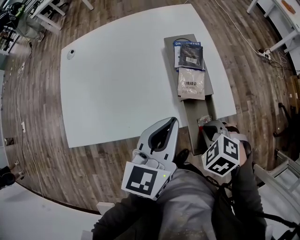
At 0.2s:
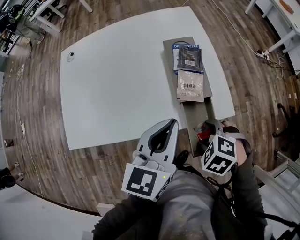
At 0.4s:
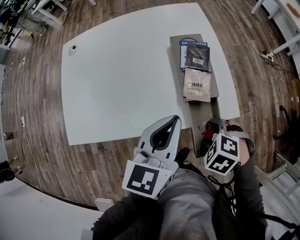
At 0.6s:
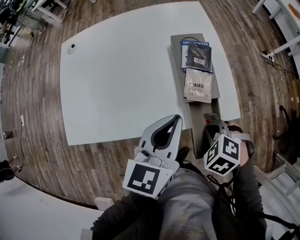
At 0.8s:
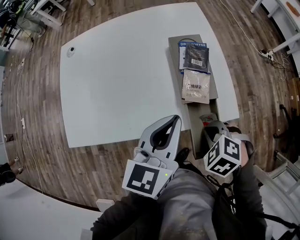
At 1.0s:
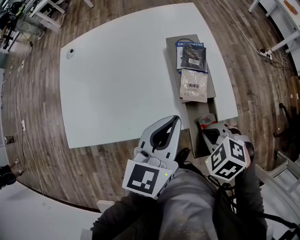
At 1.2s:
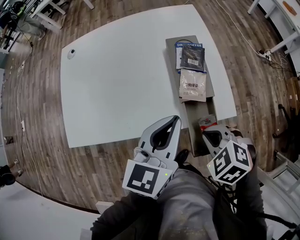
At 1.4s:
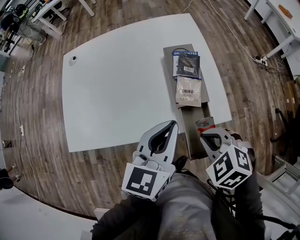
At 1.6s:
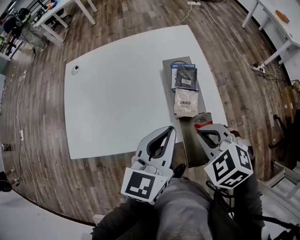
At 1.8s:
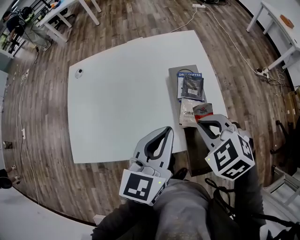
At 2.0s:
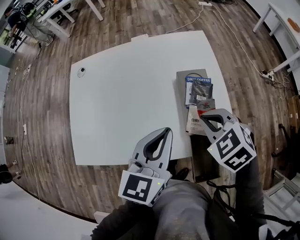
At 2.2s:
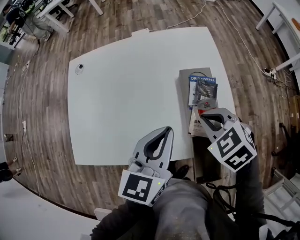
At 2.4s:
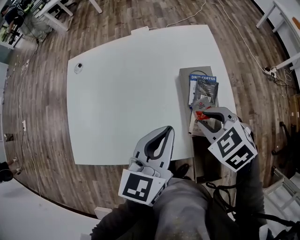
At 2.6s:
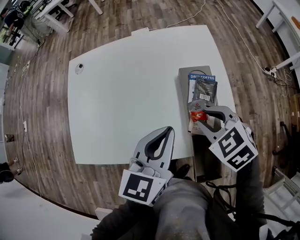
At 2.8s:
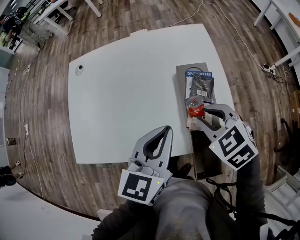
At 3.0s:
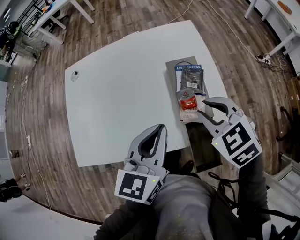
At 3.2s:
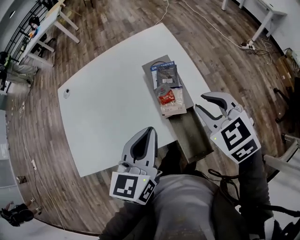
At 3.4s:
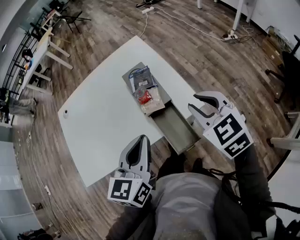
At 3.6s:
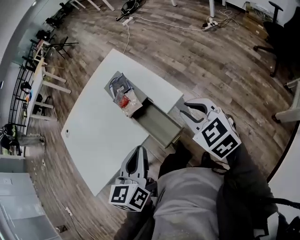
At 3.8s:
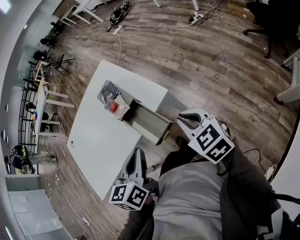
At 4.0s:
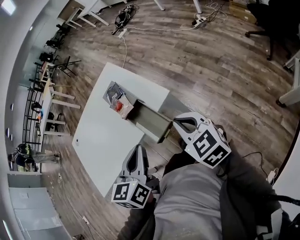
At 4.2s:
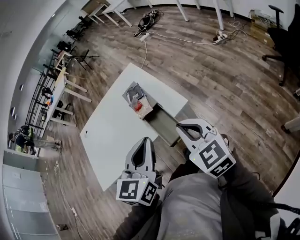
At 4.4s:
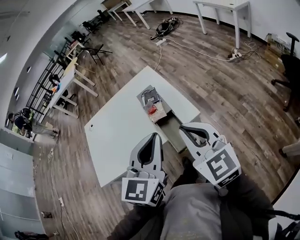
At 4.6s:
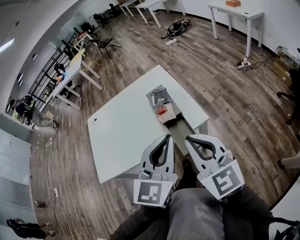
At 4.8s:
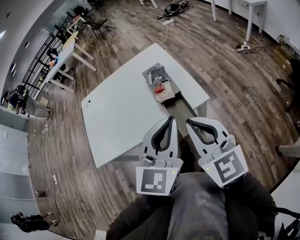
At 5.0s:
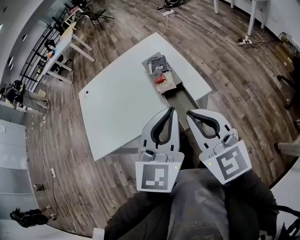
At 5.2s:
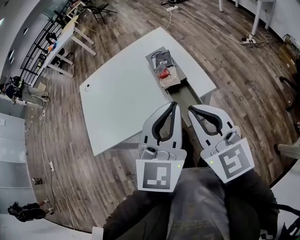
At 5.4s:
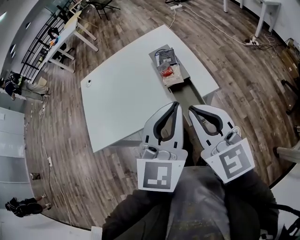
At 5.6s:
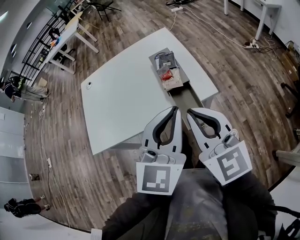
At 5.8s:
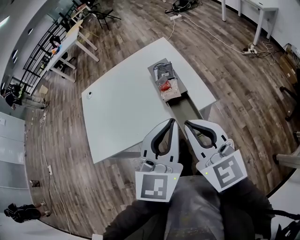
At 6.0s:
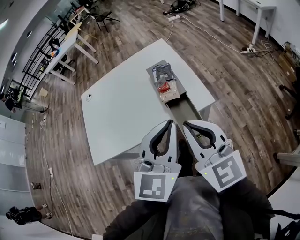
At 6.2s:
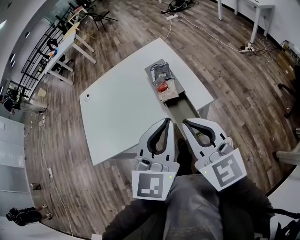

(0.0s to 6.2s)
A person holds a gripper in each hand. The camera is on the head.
0.0s - 1.6s: The right gripper goes some 10 cm upward, and opens and closes again.
1.6s - 3.2s: The right gripper goes about 10 cm to the right and forward, rotates about 30 degrees, and opens its fingers; the left gripper goes forward and returns, roughly 10 cm each way.
3.2s - 4.6s: The left gripper moves backward, to the right and upward, about 20 cm, and rotates approximately 30 degrees, while the right gripper travels backward and upward by approximately 25 cm, points its fingers about 40 degrees further upward, and closes its fingers.
4.6s - 6.2s: The grippers move only a little.

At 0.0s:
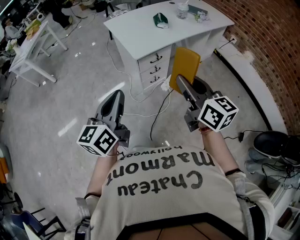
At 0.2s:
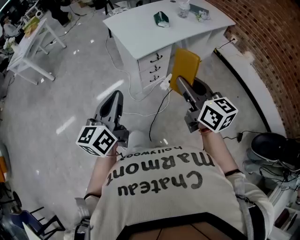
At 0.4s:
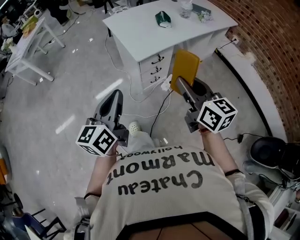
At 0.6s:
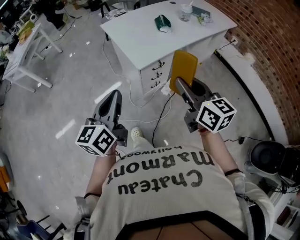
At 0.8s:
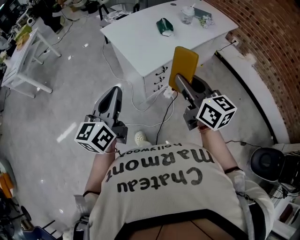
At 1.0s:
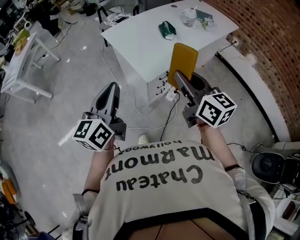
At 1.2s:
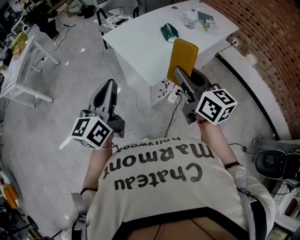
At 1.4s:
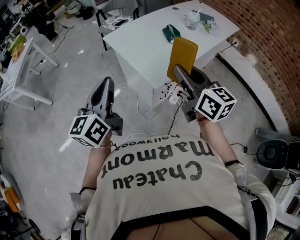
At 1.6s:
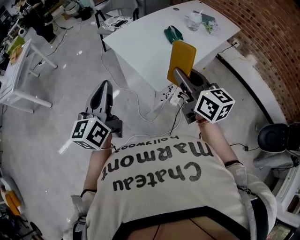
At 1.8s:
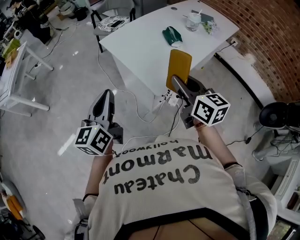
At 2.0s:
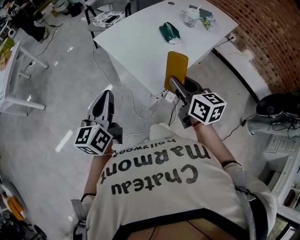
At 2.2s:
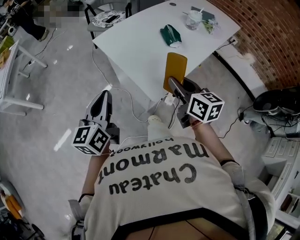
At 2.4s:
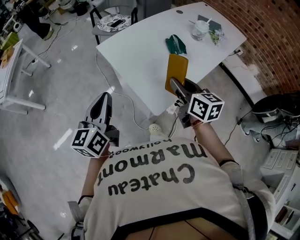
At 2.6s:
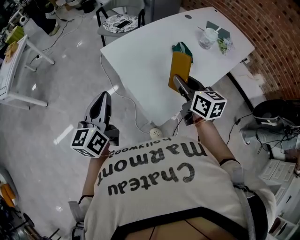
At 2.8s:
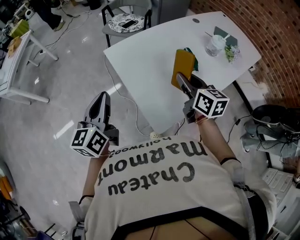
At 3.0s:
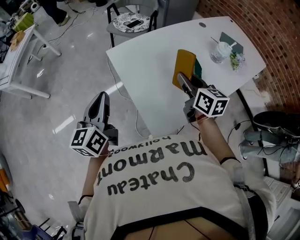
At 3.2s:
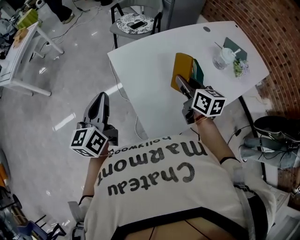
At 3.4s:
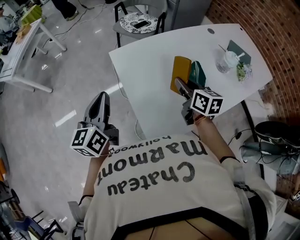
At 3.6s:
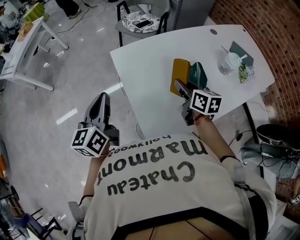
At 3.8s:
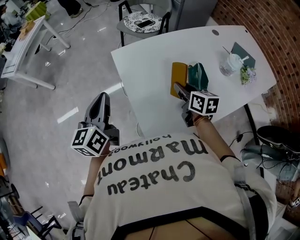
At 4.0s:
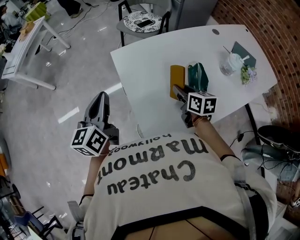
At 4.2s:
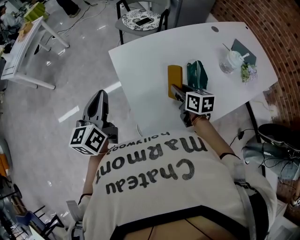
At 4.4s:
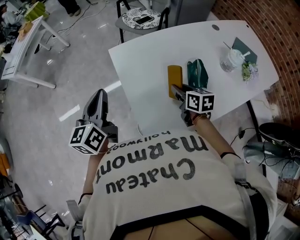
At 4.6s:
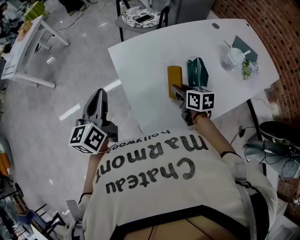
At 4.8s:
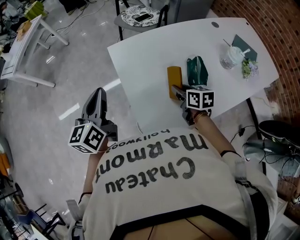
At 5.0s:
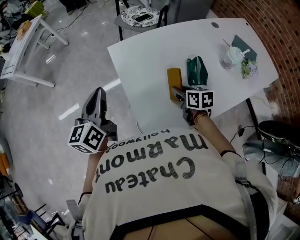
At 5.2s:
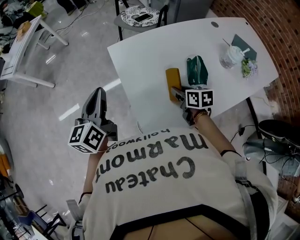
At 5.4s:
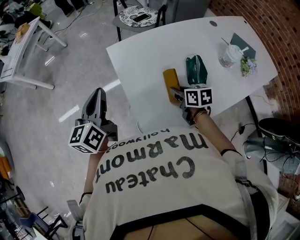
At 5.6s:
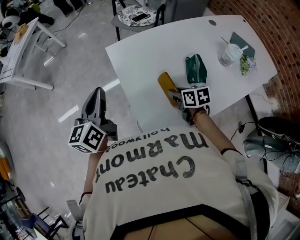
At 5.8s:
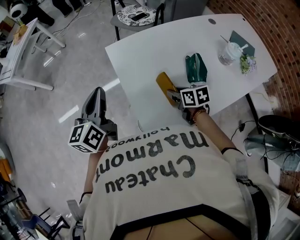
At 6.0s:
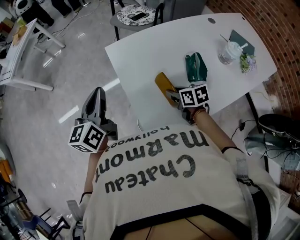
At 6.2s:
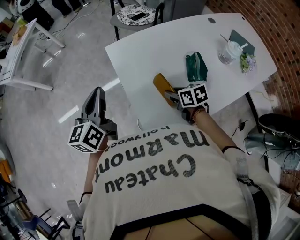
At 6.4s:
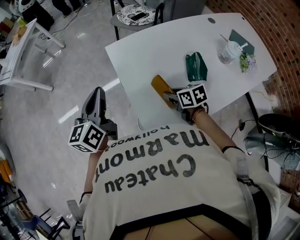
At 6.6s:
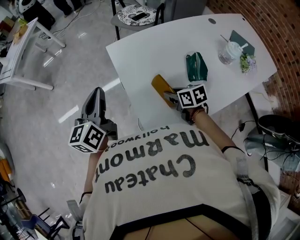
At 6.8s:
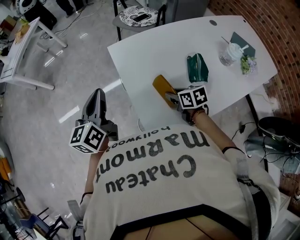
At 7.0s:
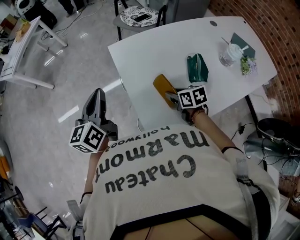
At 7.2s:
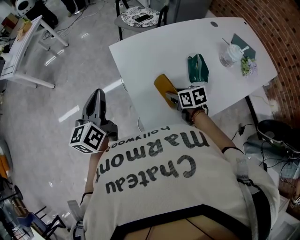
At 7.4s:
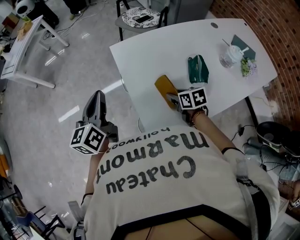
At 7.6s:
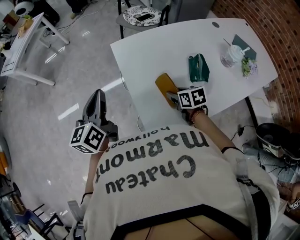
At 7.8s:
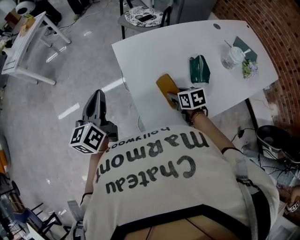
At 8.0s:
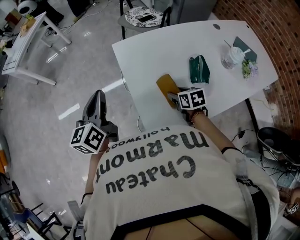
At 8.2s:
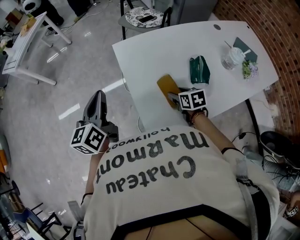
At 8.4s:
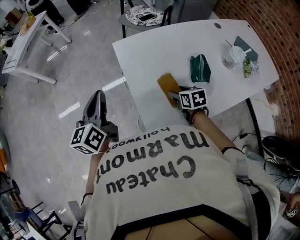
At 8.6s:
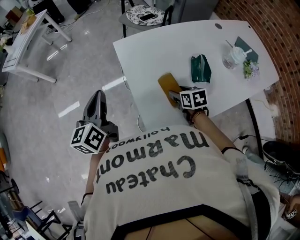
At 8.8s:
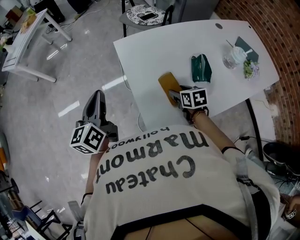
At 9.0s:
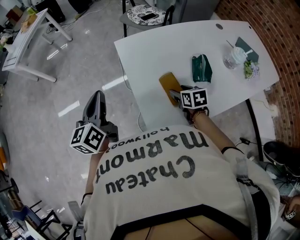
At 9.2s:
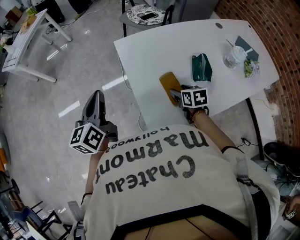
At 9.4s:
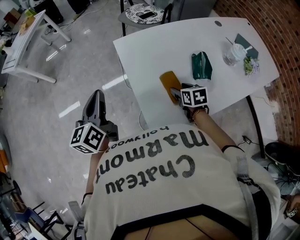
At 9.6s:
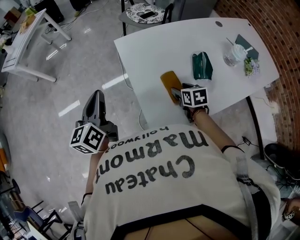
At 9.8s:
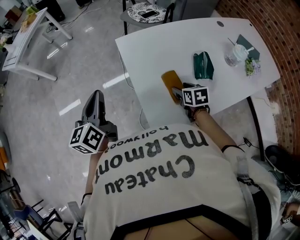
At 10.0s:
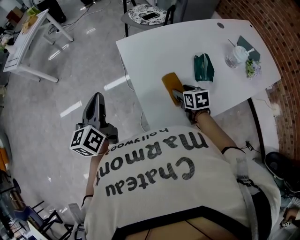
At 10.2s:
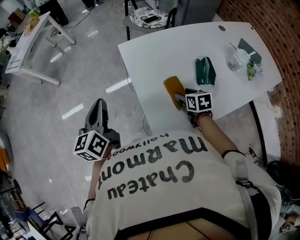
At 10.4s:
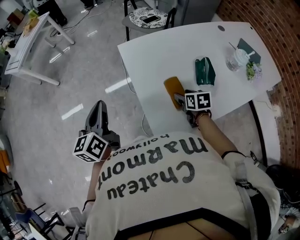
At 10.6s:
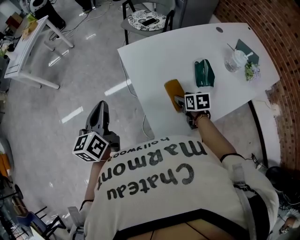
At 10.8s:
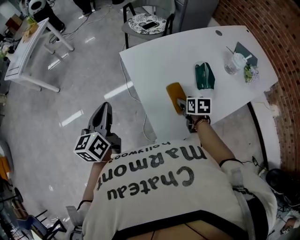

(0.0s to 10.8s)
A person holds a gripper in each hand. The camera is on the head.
0.0s - 1.6s: Both grippers travel together forward and to the left, some 35 cm.
1.6s - 3.0s: The grippers both shift forward by some 30 cm.
3.0s - 4.6s: The right gripper goes about 15 cm downward, and swivels about 20 degrees.
4.6s - 6.2s: The right gripper moves some 5 cm.
6.2s - 7.8s: The right gripper opens up.
7.8s - 10.8s: There are only small adjustments of the grippers.

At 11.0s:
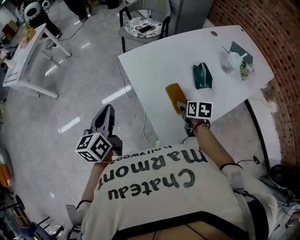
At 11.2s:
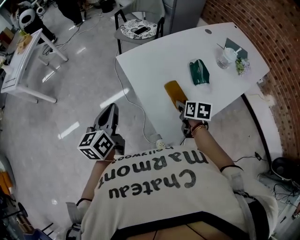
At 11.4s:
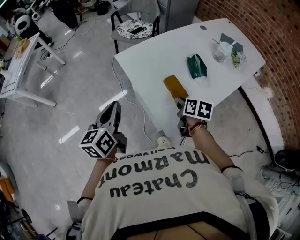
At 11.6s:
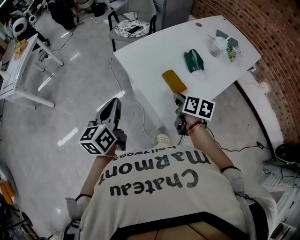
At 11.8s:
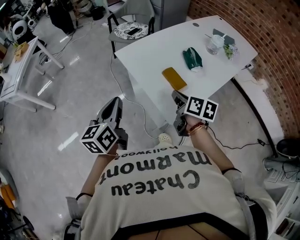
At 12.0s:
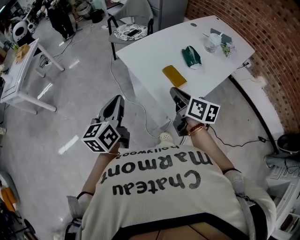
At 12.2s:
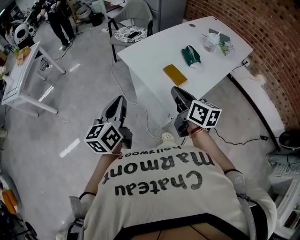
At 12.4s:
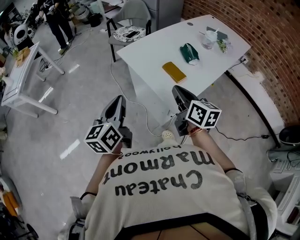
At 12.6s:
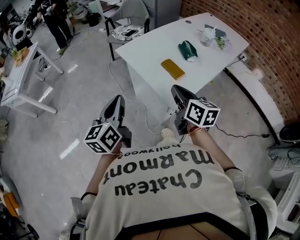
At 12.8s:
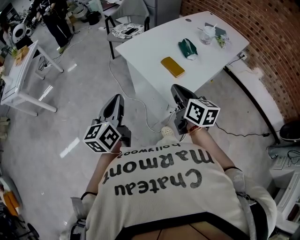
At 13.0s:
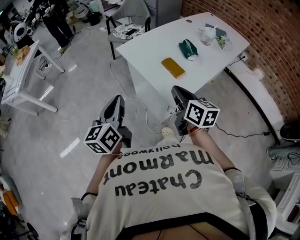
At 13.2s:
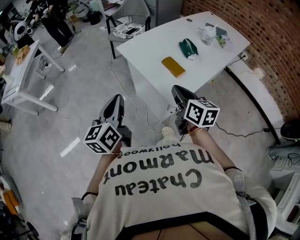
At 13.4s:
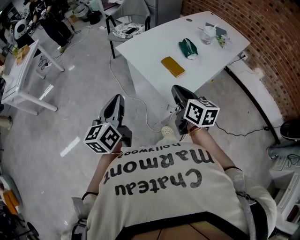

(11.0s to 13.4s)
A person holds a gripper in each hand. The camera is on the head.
11.0s - 12.2s: The right gripper heads upward, backward and to the left, covering approximately 30 cm, points its fingers roughly 40 degrees further upward, and closes up, while the left gripper goes about 10 cm backward.
12.2s - 13.4s: The grippers move only a little.

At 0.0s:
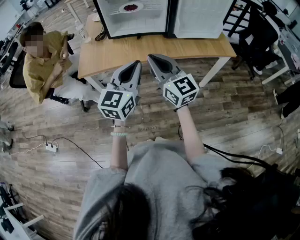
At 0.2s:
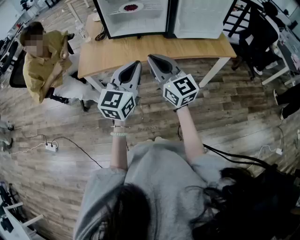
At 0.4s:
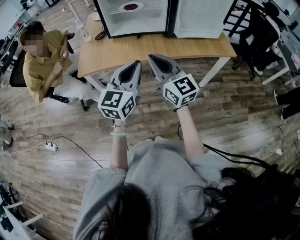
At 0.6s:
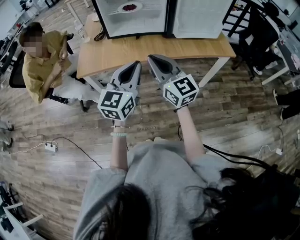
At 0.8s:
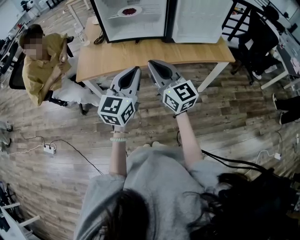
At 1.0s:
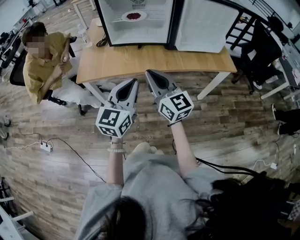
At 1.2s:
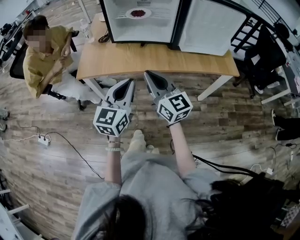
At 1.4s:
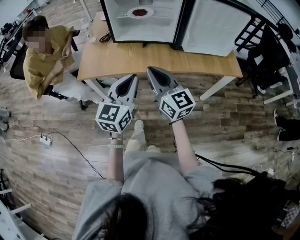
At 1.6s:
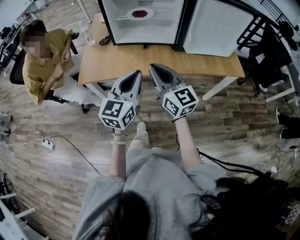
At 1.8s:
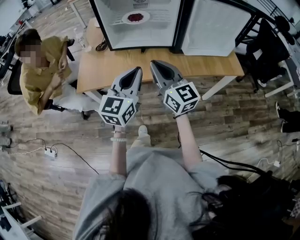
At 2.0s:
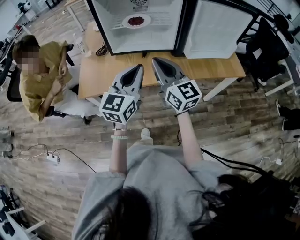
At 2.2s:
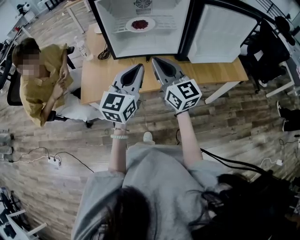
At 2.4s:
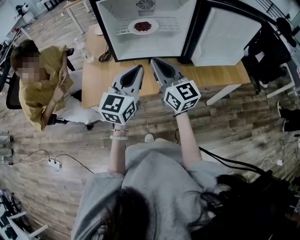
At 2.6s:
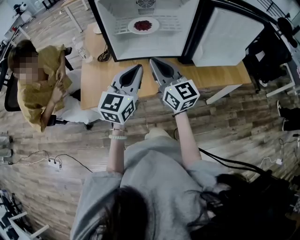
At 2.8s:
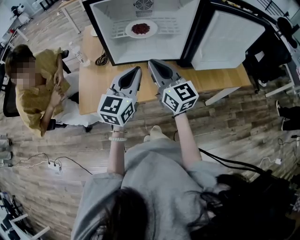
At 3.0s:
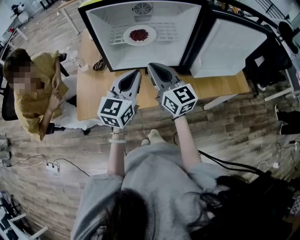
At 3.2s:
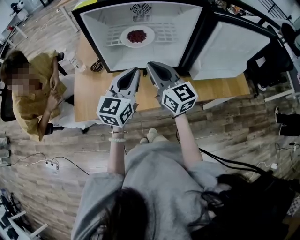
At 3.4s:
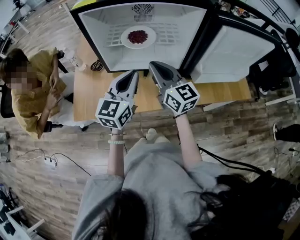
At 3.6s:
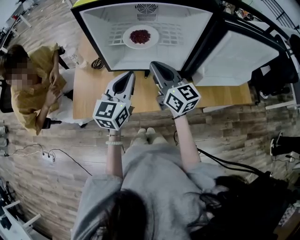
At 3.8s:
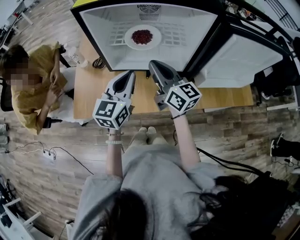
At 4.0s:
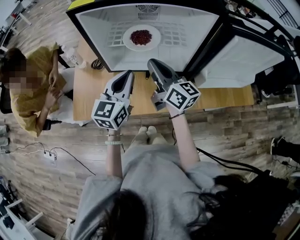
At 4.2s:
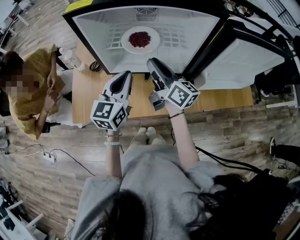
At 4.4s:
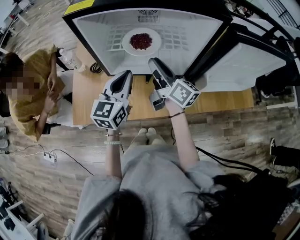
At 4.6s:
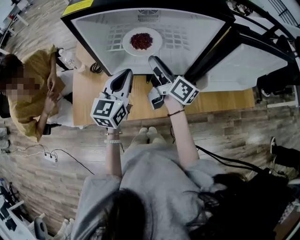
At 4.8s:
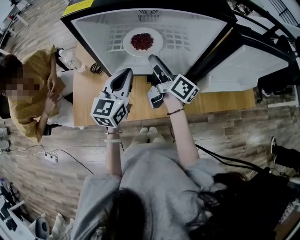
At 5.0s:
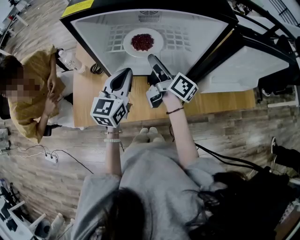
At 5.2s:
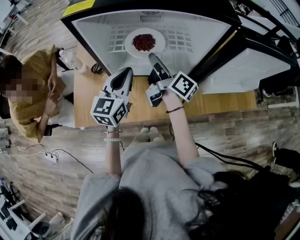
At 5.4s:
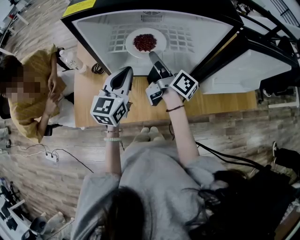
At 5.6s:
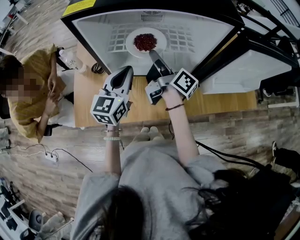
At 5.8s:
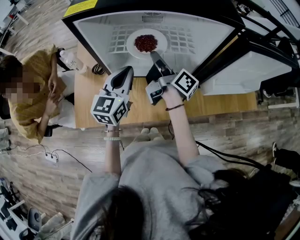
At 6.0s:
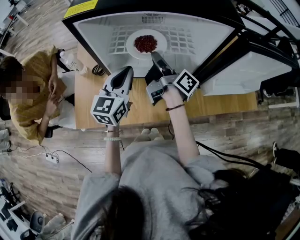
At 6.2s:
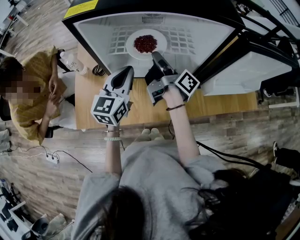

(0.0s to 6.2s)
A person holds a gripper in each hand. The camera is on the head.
0.0s - 1.6s: The two grippers go about 10 cm forward.
1.6s - 3.2s: Both grippers travel together forward, some 20 cm.
3.2s - 4.6s: The grippers both shift forward by some 10 cm. The right gripper rolls clockwise, seen from behind, by approximately 50 degrees, and opens.
4.6s - 6.2s: The right gripper rotates approximately 30 degrees.
